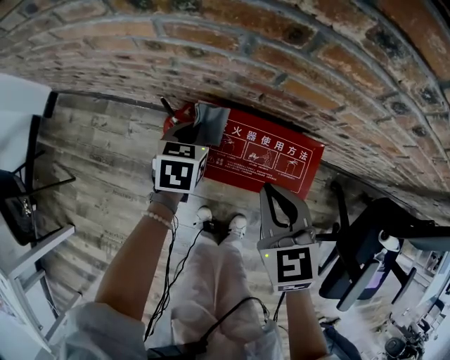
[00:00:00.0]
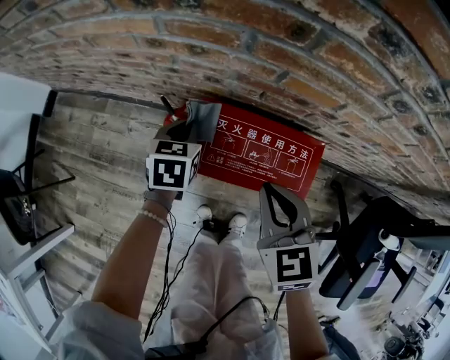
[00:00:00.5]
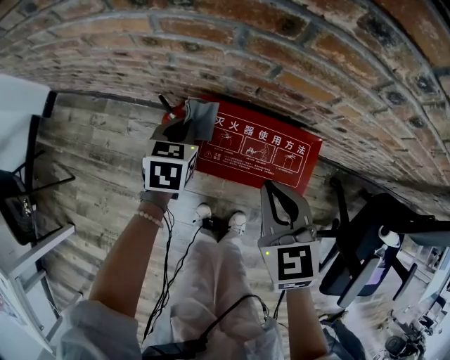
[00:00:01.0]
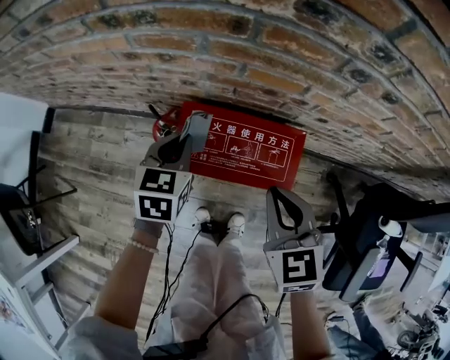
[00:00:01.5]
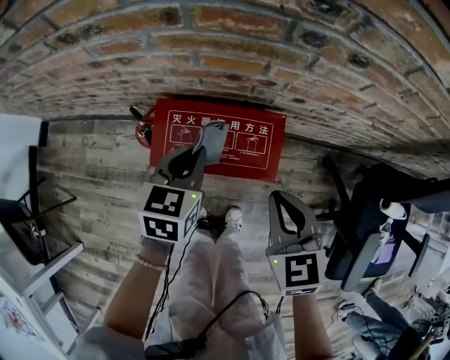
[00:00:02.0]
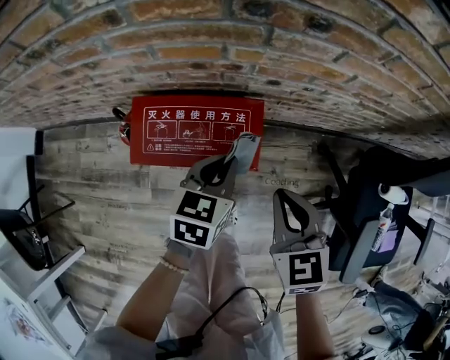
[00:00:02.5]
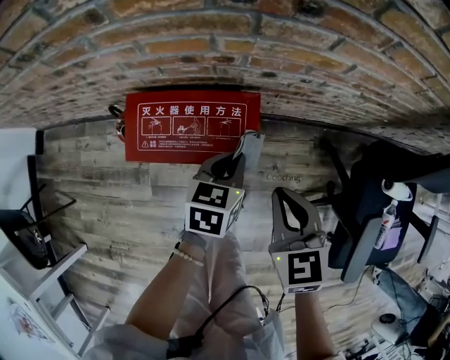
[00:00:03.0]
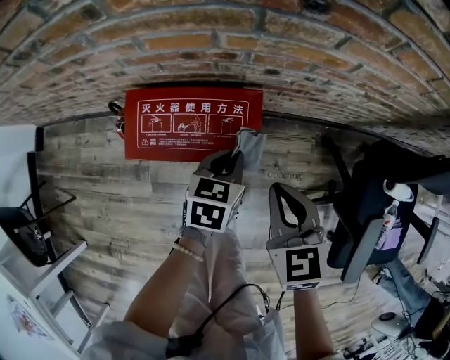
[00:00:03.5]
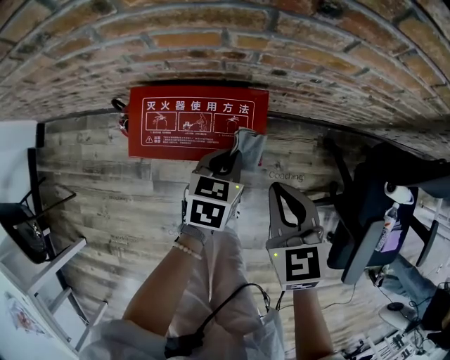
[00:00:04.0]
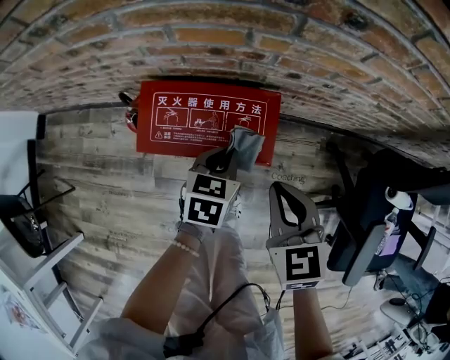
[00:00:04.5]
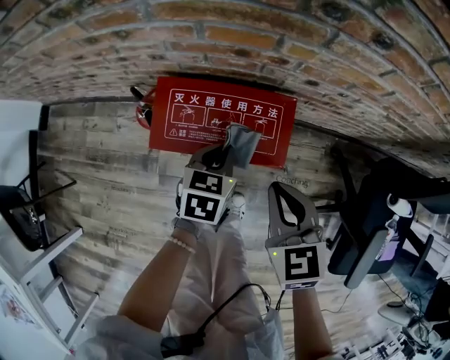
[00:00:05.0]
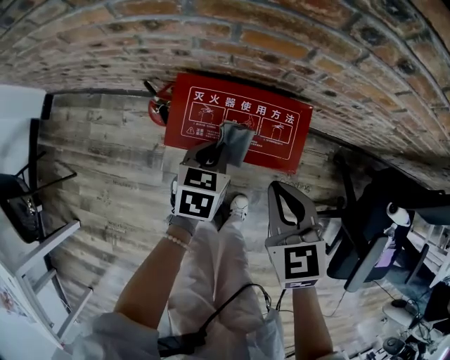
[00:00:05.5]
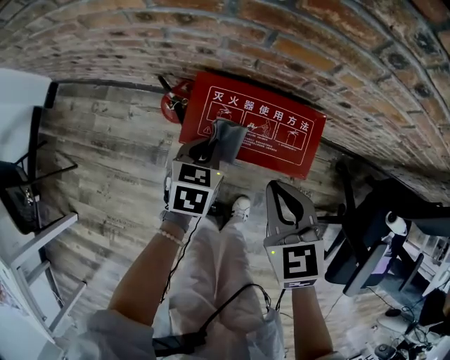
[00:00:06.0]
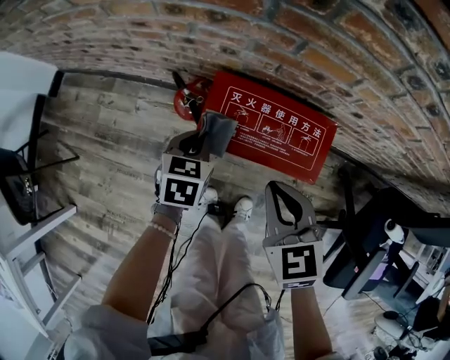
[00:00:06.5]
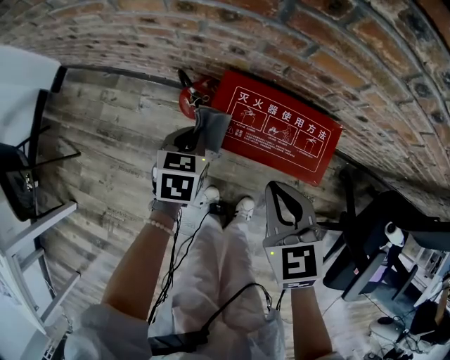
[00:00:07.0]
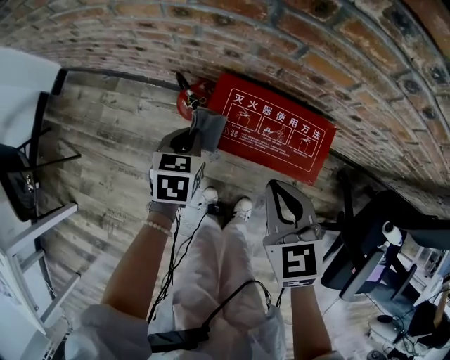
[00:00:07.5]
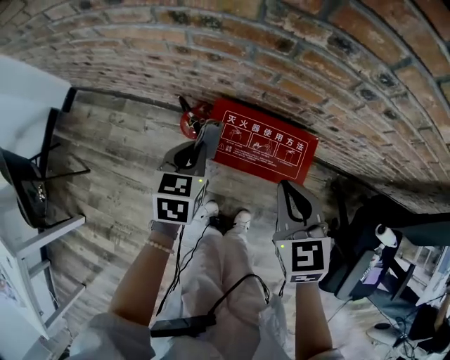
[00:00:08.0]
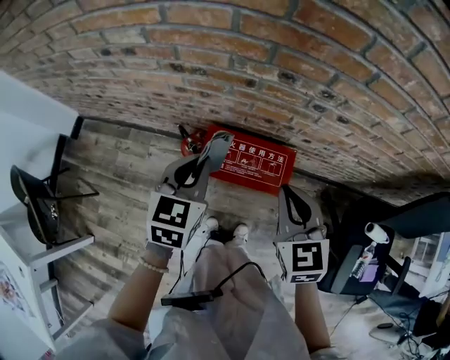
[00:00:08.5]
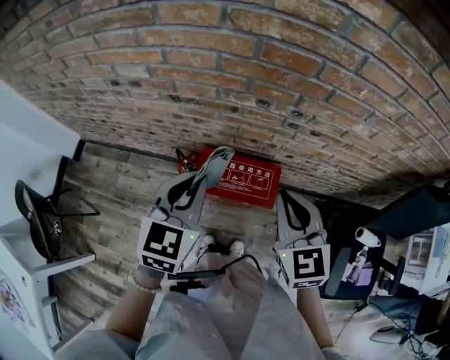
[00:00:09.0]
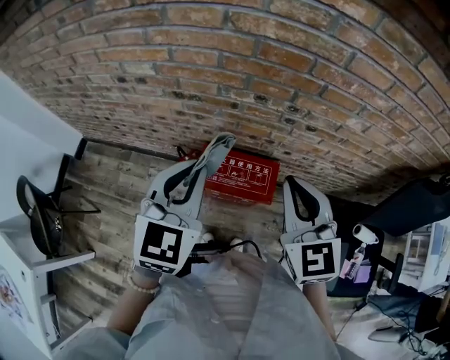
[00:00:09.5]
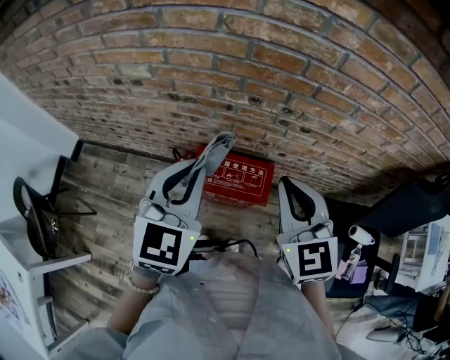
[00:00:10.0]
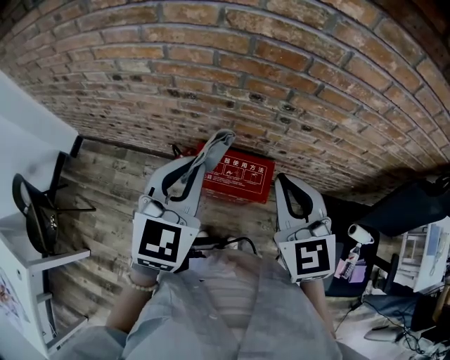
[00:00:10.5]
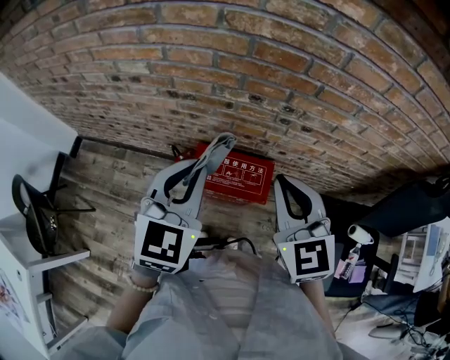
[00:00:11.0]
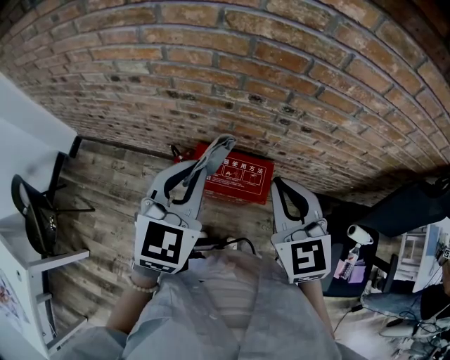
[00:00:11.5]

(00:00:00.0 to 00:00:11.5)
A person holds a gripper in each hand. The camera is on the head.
00:00:00.0 - 00:00:02.0: The right gripper travels to the right and backward by roughly 15 cm. Meanwhile the left gripper shifts some 20 cm to the right, upward and backward.
00:00:02.0 - 00:00:04.0: The left gripper moves to the right and downward, approximately 15 cm; the right gripper travels to the right by about 5 cm.
00:00:04.0 - 00:00:06.0: Both grippers travel together to the left, about 15 cm.
00:00:06.0 - 00:00:07.5: The left gripper goes roughly 10 cm to the left.
00:00:07.5 - 00:00:09.5: The grippers both shift upward by roughly 40 cm. The right gripper changes its angle by about 30 degrees. The left gripper angles its fingers upward, by approximately 30 degrees.
00:00:09.5 - 00:00:11.5: There are only small adjustments of the grippers.

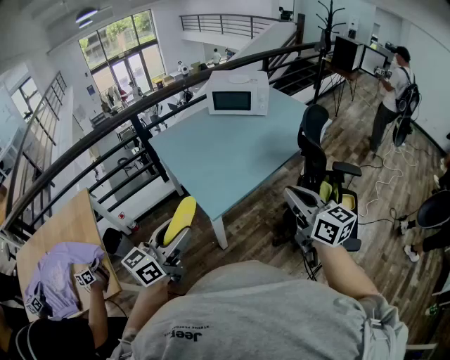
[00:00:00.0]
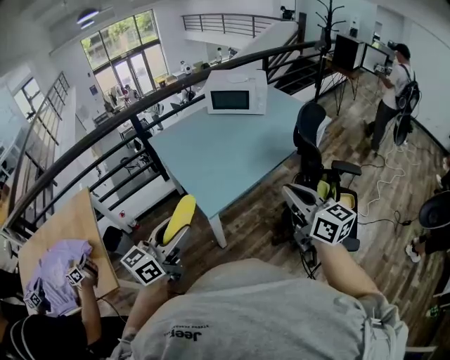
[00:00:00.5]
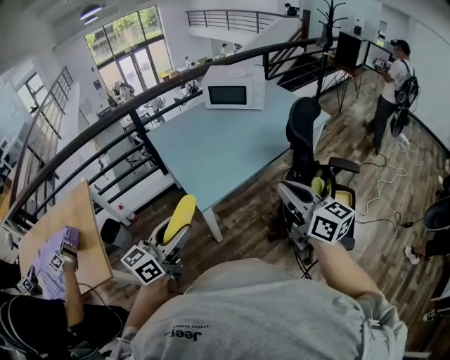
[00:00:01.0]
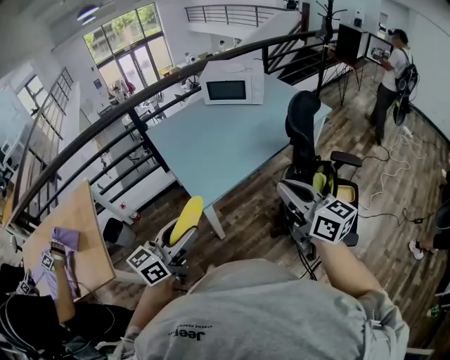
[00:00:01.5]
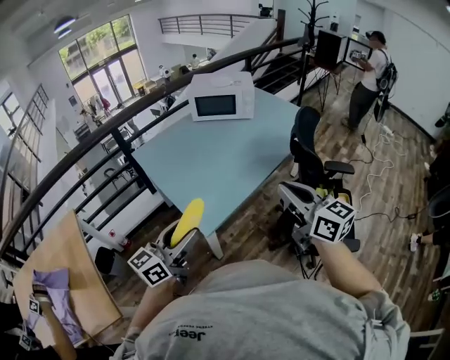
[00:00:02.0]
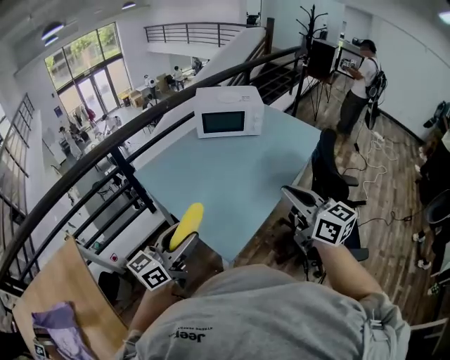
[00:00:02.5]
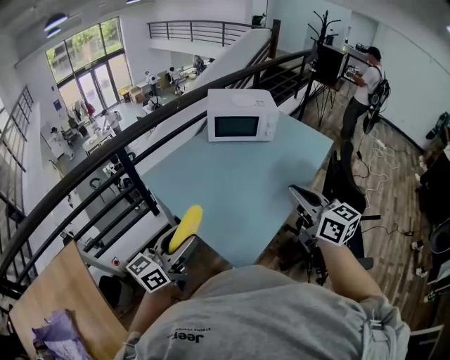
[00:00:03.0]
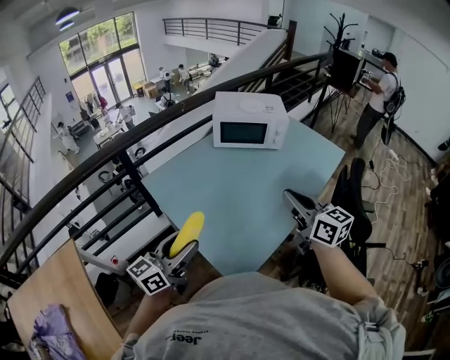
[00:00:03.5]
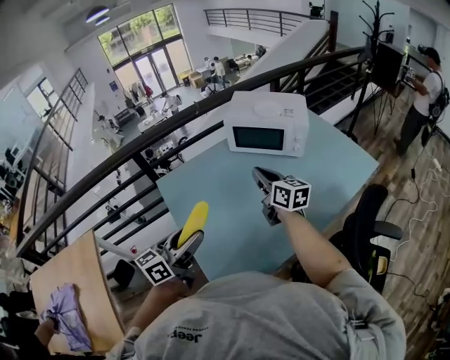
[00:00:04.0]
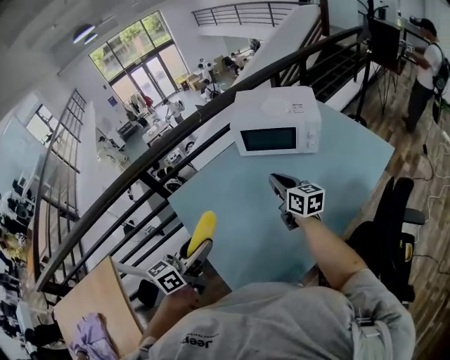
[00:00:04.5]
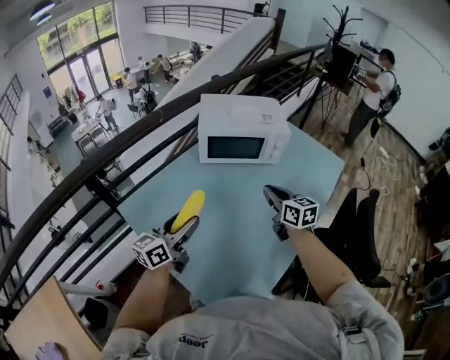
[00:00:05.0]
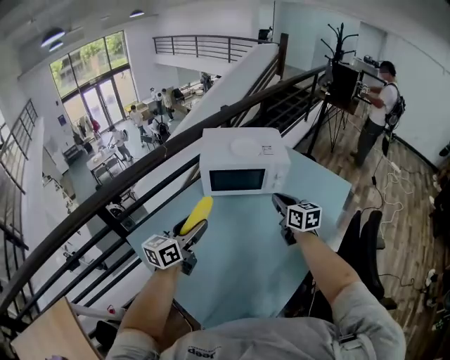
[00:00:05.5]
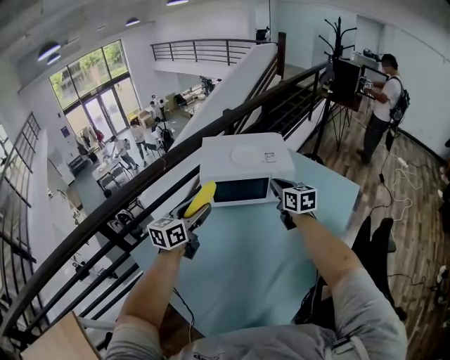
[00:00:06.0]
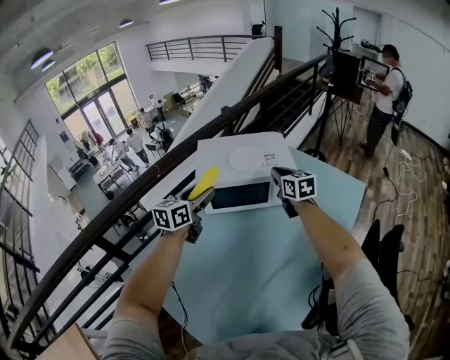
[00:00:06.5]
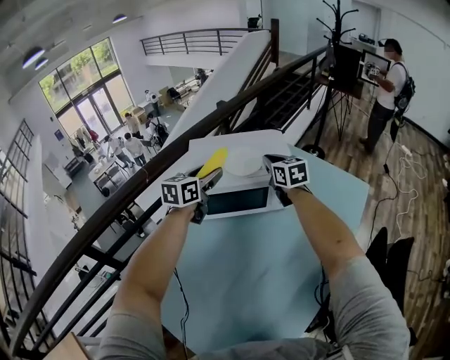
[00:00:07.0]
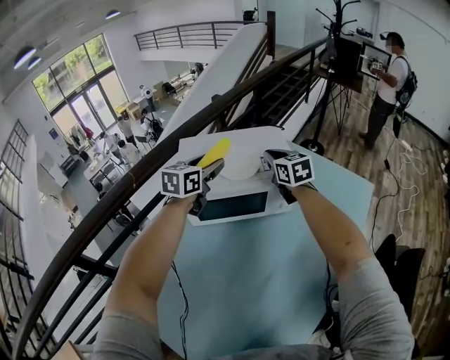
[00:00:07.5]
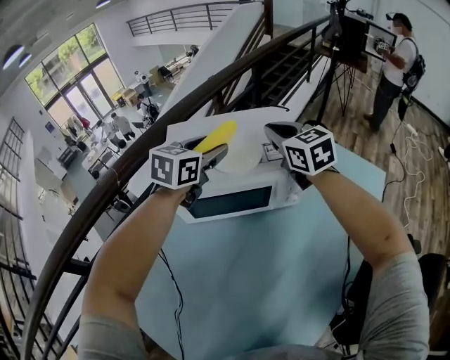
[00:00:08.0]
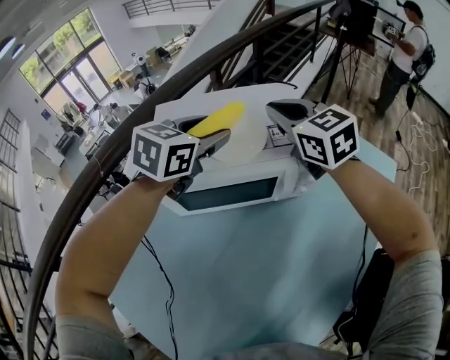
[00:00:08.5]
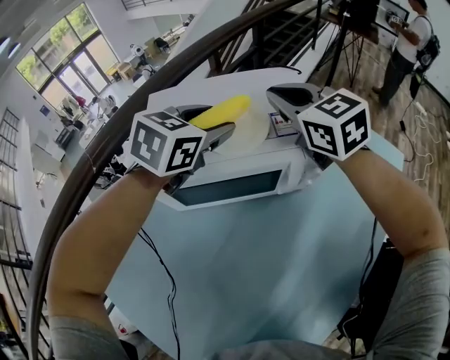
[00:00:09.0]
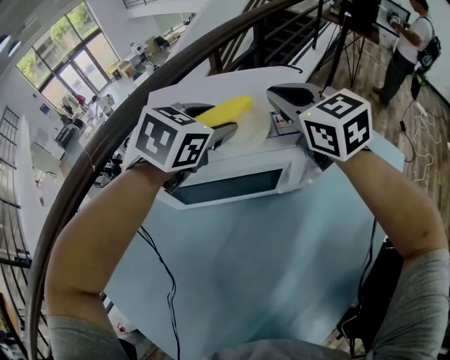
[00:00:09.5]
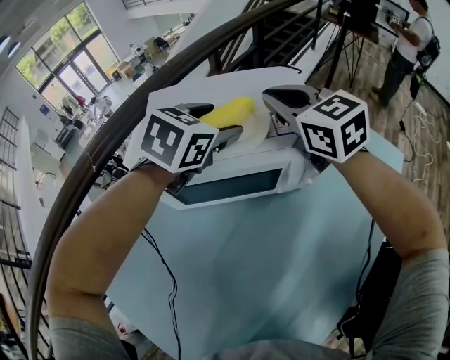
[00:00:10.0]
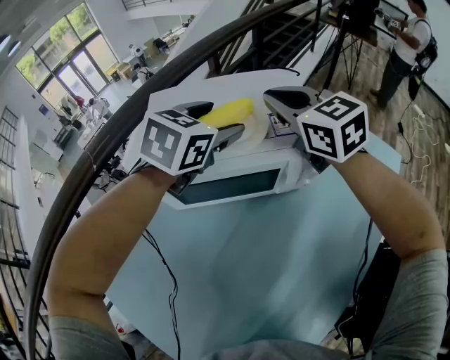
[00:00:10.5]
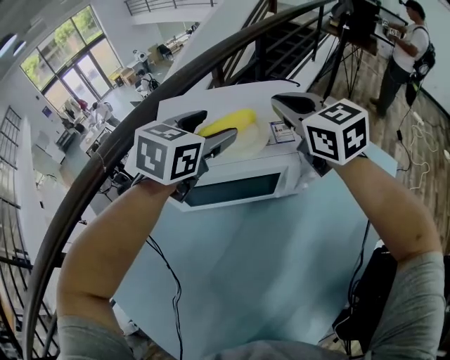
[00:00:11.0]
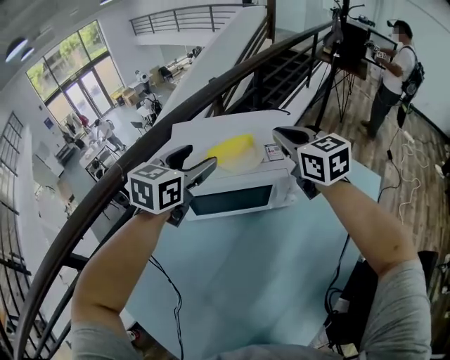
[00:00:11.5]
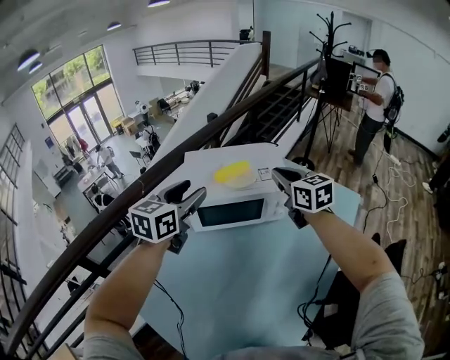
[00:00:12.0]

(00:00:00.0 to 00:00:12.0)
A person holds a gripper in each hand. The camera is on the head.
00:00:00.0 - 00:00:02.0: Both grippers move forward, roughly 5 cm.
00:00:02.0 - 00:00:04.0: The left gripper heads forward, covering roughly 30 cm. Meanwhile the right gripper goes roughly 50 cm forward.
00:00:04.0 - 00:00:06.0: The left gripper travels forward by about 40 cm, while the right gripper moves forward, some 25 cm, and rotates approximately 30 degrees.
00:00:06.0 - 00:00:08.0: The grippers both shift forward by roughly 25 cm. The left gripper turns by roughly 20 degrees.
00:00:08.0 - 00:00:10.0: The left gripper shifts by approximately 5 cm.
00:00:10.0 - 00:00:12.0: The left gripper shifts roughly 25 cm backward, upward and to the left, and rotates approximately 30 degrees. The right gripper heads backward and upward, covering approximately 15 cm.

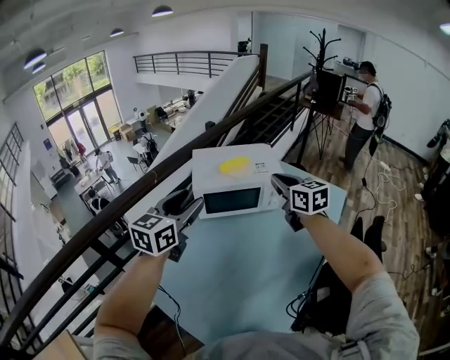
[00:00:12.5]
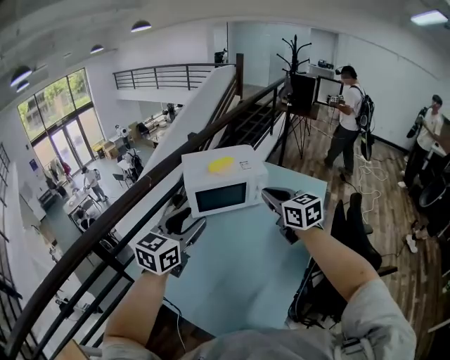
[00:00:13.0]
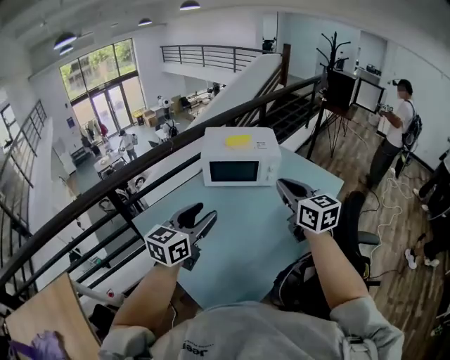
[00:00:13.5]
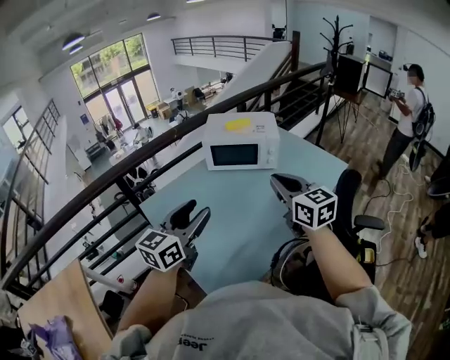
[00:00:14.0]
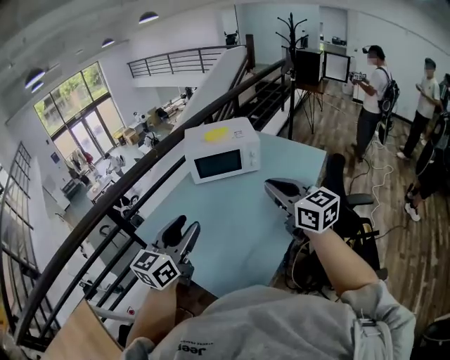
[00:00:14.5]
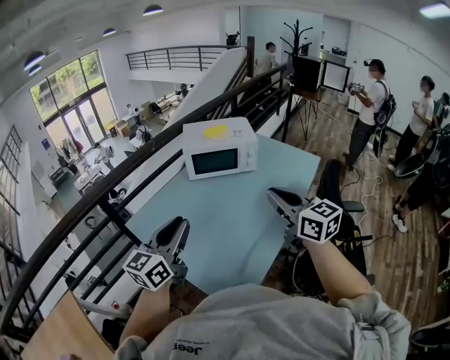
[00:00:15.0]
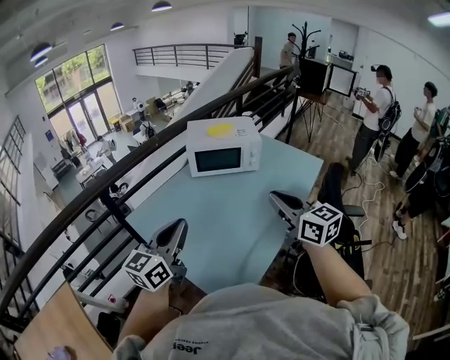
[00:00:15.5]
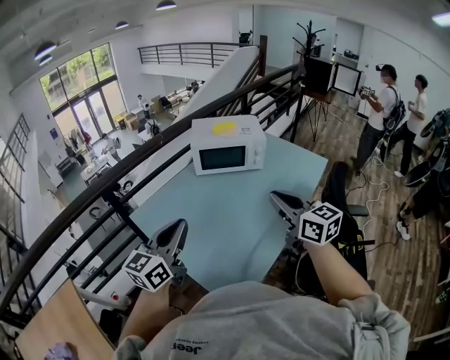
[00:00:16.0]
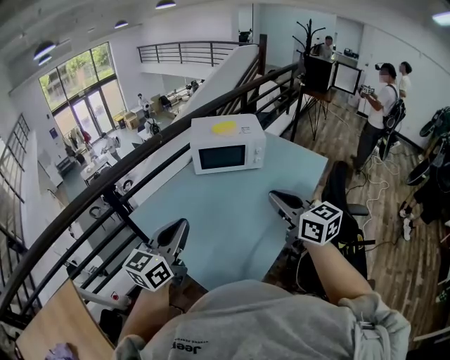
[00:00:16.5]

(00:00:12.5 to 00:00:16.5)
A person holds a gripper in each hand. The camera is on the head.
00:00:12.5 - 00:00:14.5: Both grippers travel together backward, some 35 cm.
00:00:14.5 - 00:00:16.5: The left gripper closes its fingers.
